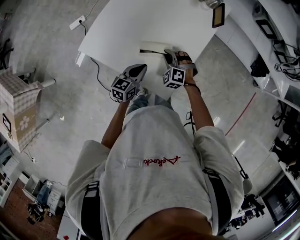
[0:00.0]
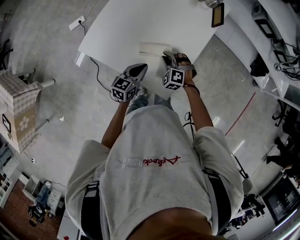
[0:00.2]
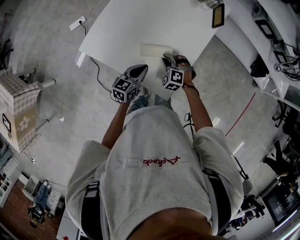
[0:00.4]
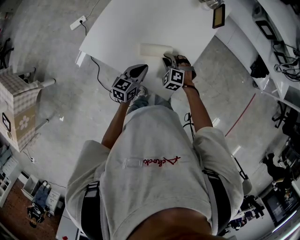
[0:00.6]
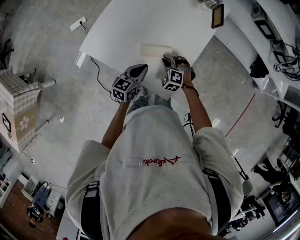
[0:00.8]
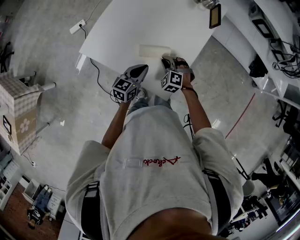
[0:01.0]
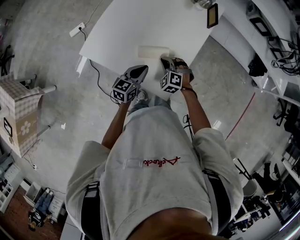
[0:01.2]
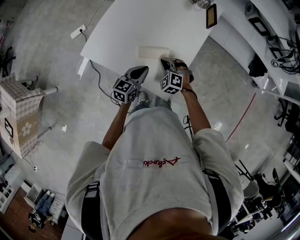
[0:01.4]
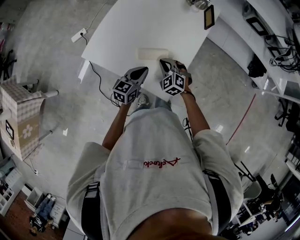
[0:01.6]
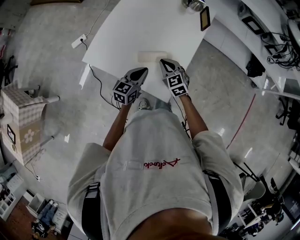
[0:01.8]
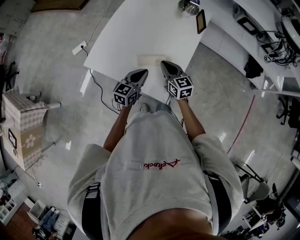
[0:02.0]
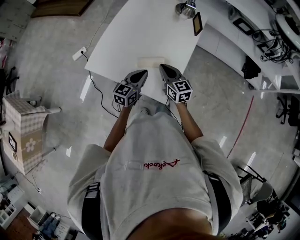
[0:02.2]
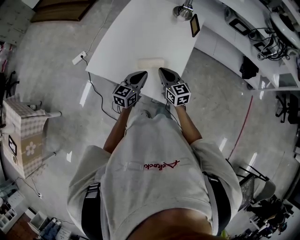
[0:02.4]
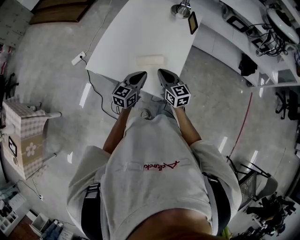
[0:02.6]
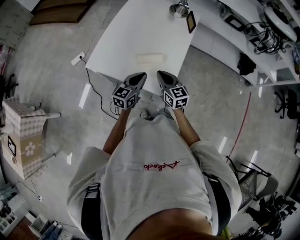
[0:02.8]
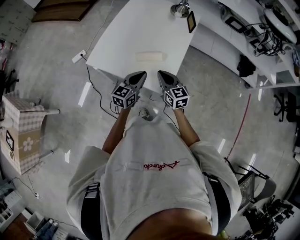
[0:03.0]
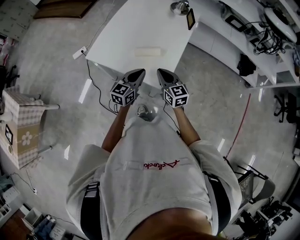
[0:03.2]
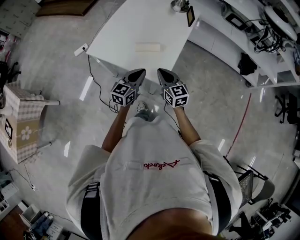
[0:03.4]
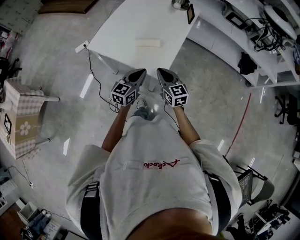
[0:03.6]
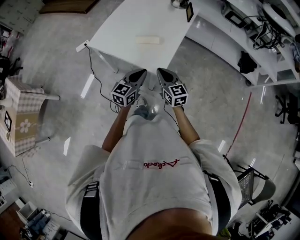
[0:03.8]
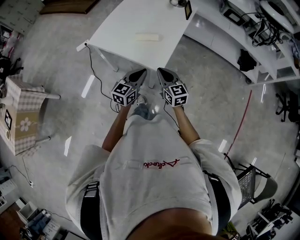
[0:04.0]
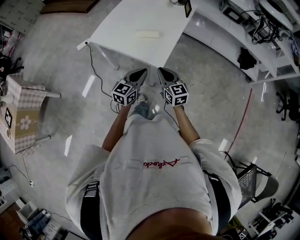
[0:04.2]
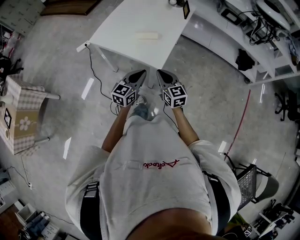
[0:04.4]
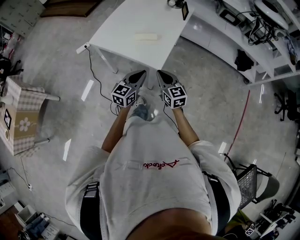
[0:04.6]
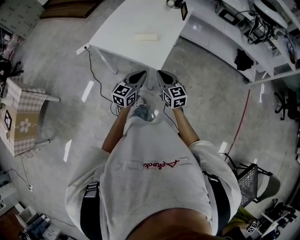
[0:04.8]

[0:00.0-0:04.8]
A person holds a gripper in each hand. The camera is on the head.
0:00.0 to 0:01.6: The right gripper turns by approximately 20 degrees.
0:01.6 to 0:03.2: The right gripper shifts some 15 cm upward and backward, and rotates around the line of its fingers by approximately 40 degrees, clockwise from behind. The left gripper is displaced upward and backward by about 10 cm.
0:03.2 to 0:04.8: Both grippers move backward, about 15 cm.

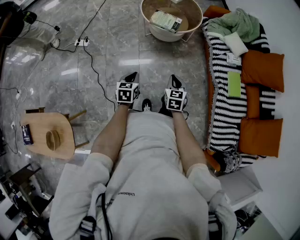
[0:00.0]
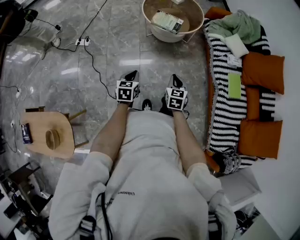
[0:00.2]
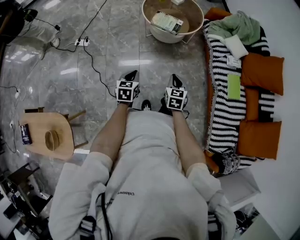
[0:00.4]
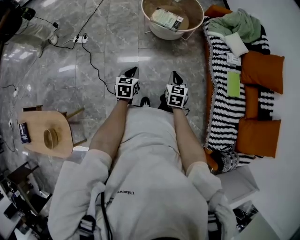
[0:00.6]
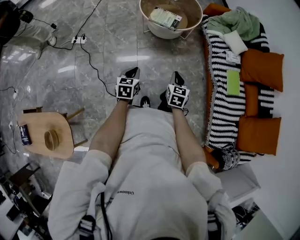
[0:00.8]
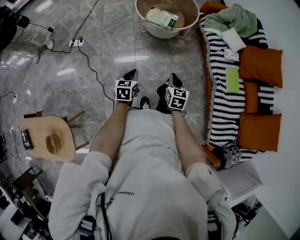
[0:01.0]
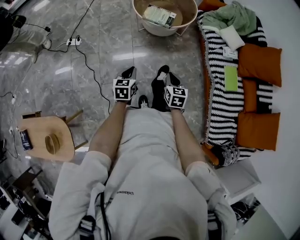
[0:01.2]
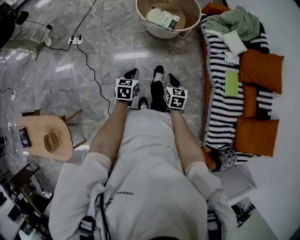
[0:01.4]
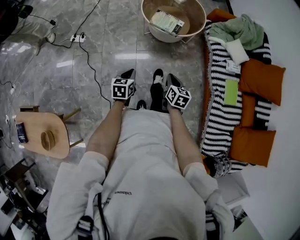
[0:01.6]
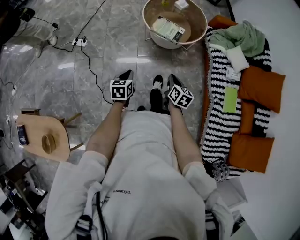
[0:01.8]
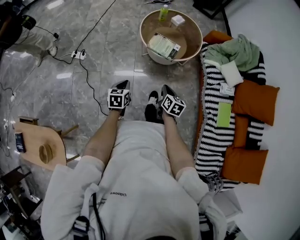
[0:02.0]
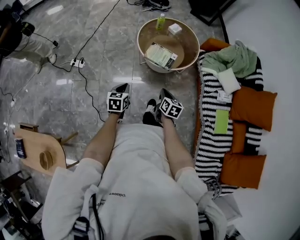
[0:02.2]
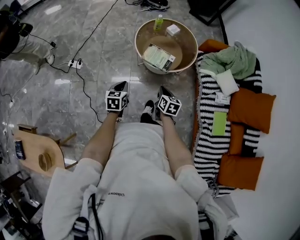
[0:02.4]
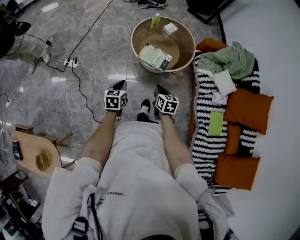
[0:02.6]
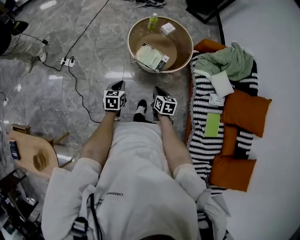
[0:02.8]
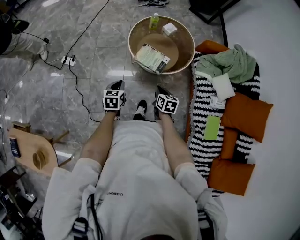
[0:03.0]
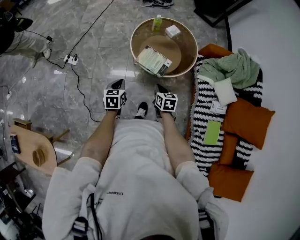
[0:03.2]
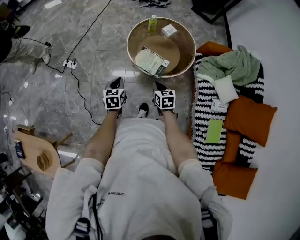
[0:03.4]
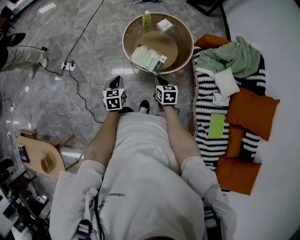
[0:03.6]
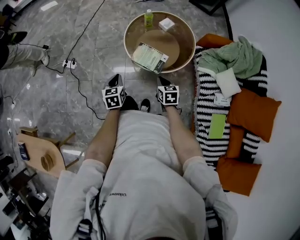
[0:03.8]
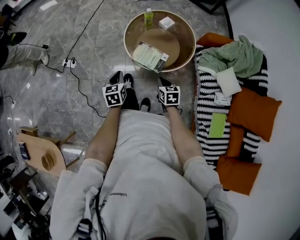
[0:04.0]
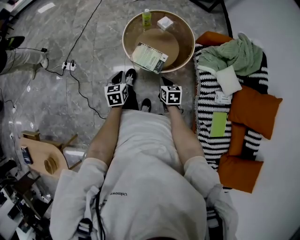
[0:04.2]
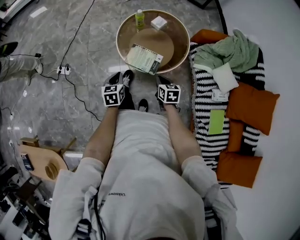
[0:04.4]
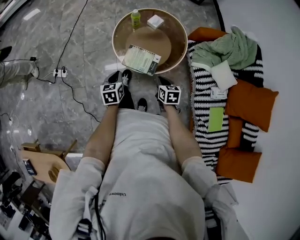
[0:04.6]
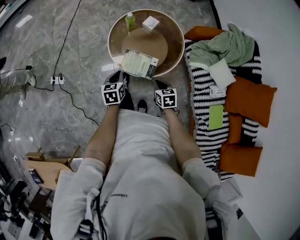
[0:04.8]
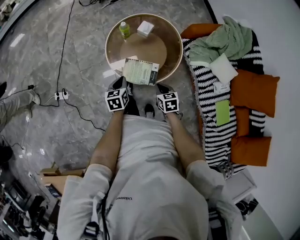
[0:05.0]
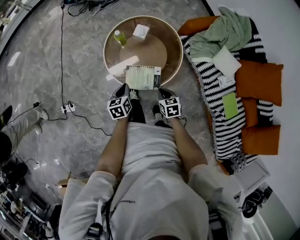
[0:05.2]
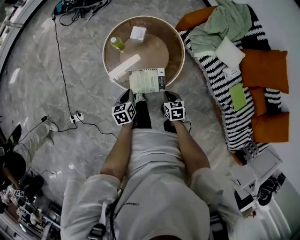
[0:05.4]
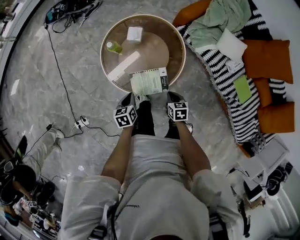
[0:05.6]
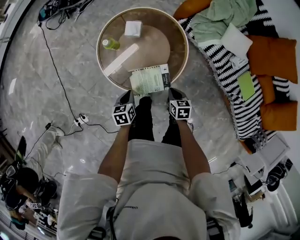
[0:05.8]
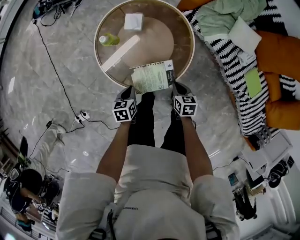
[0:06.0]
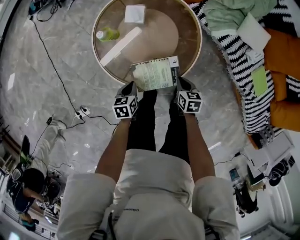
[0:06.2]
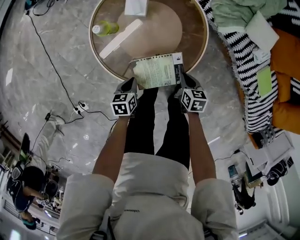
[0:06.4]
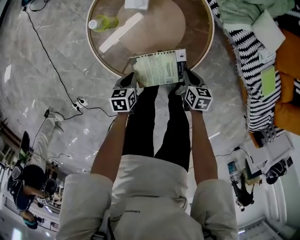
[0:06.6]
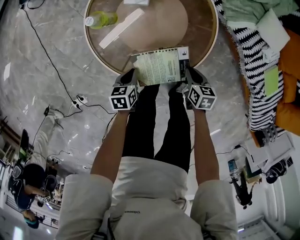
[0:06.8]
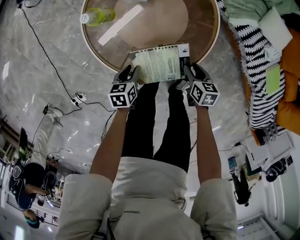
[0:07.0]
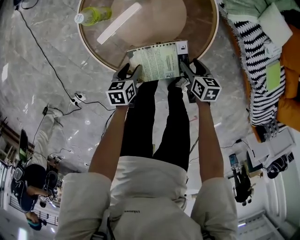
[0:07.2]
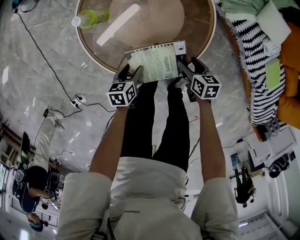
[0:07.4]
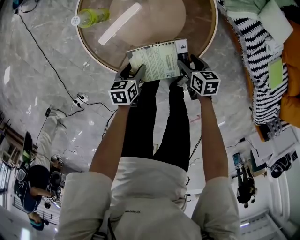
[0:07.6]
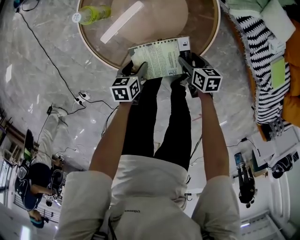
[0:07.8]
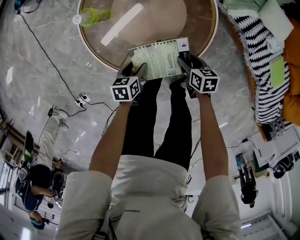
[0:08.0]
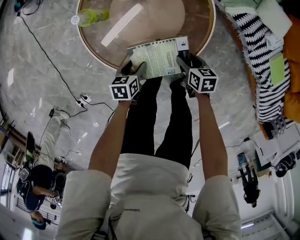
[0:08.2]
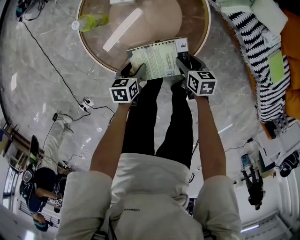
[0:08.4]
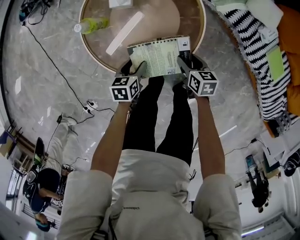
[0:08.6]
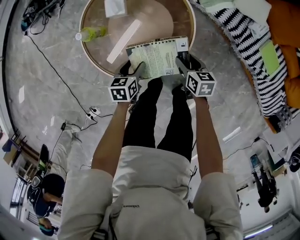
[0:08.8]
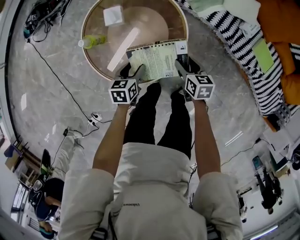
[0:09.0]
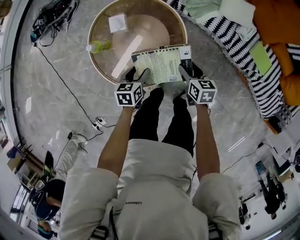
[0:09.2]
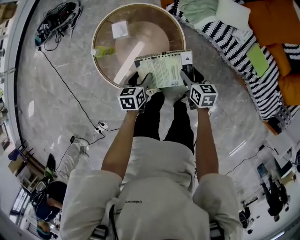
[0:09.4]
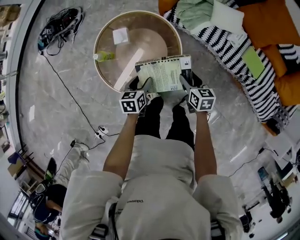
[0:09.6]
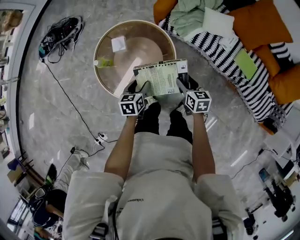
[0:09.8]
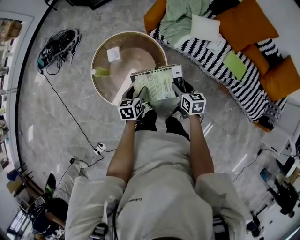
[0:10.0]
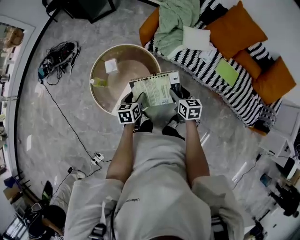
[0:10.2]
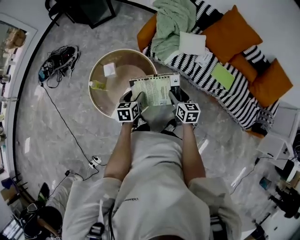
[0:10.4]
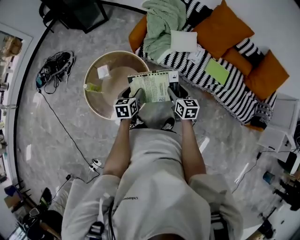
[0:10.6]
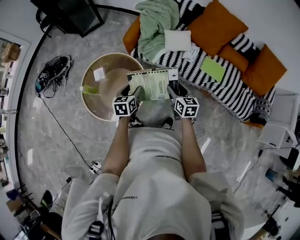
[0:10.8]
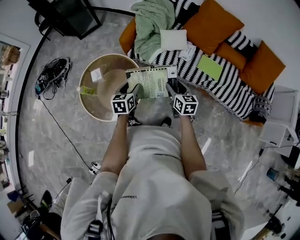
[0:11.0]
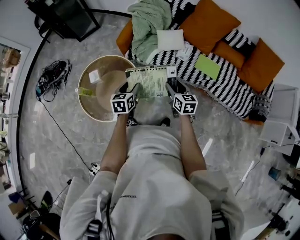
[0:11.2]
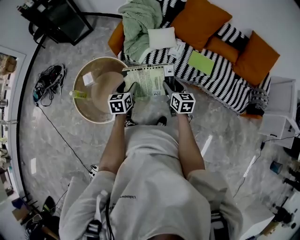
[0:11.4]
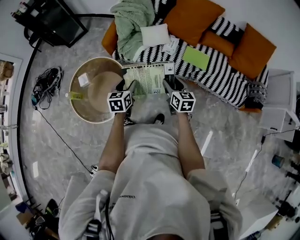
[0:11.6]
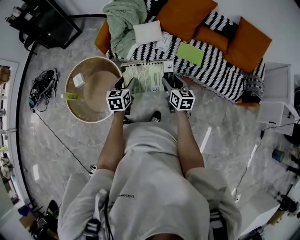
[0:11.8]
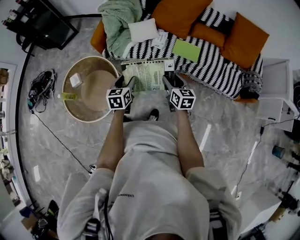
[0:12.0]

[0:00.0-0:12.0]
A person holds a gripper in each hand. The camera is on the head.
0:00.0 to 0:01.6: The two grippers go approximately 10 cm forward. The right gripper changes its angle by approximately 20 degrees.
0:01.6 to 0:03.0: Both grippers travel together forward, about 25 cm.
0:03.0 to 0:04.4: Both grippers move forward and to the right, approximately 10 cm.
0:04.4 to 0:06.0: The left gripper shifts by approximately 30 cm, and swivels approximately 40 degrees. Meanwhile the right gripper travels downward by approximately 15 cm, and turns by about 40 degrees.
0:06.0 to 0:07.6: Both grippers move downward, about 15 cm. The right gripper opens up; the left gripper opens up.
0:07.6 to 0:09.0: The left gripper heads upward, forward and to the right, covering some 15 cm; the right gripper goes about 15 cm upward.
0:09.0 to 0:10.4: Both grippers move upward and to the right, roughly 25 cm.
0:10.4 to 0:12.0: The grippers both shift to the right by about 25 cm.

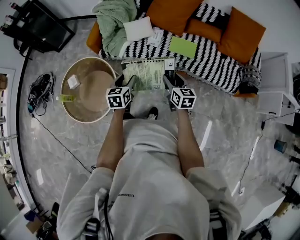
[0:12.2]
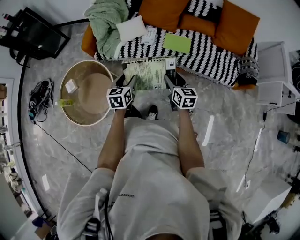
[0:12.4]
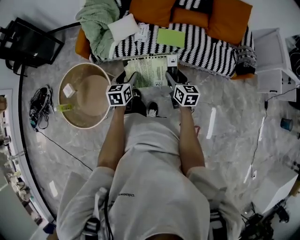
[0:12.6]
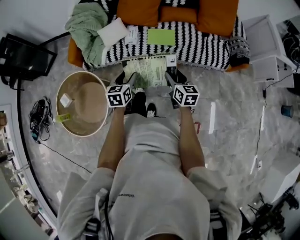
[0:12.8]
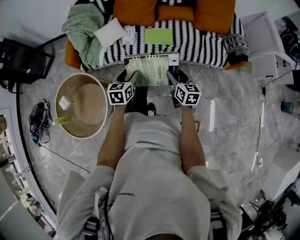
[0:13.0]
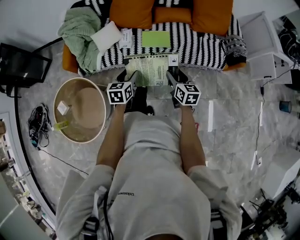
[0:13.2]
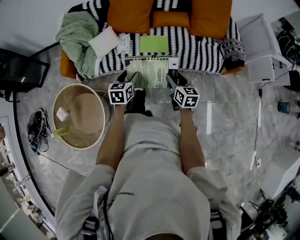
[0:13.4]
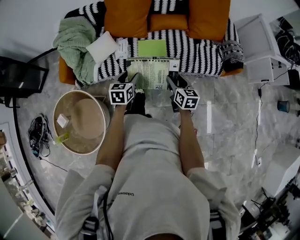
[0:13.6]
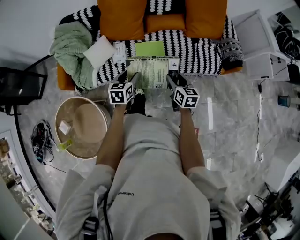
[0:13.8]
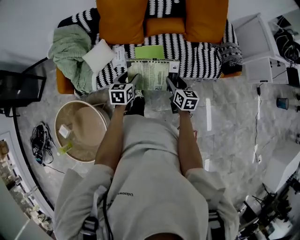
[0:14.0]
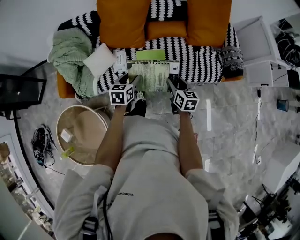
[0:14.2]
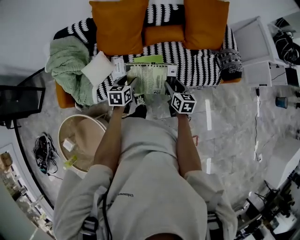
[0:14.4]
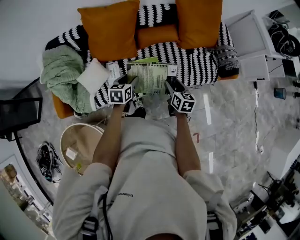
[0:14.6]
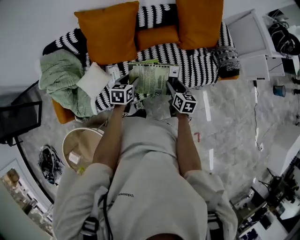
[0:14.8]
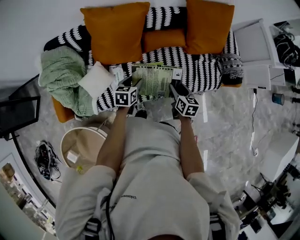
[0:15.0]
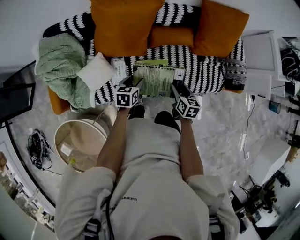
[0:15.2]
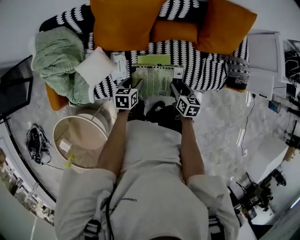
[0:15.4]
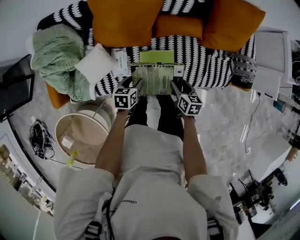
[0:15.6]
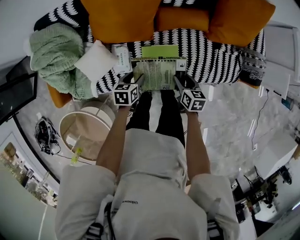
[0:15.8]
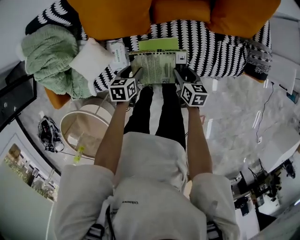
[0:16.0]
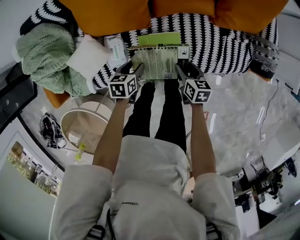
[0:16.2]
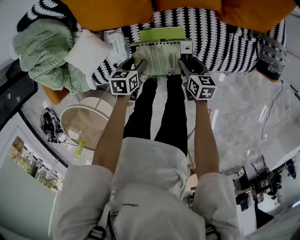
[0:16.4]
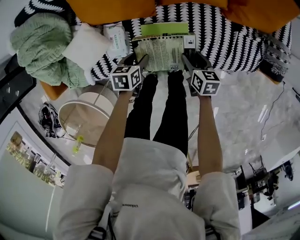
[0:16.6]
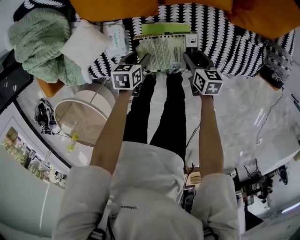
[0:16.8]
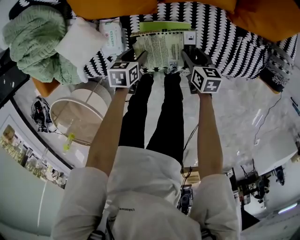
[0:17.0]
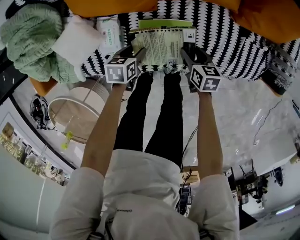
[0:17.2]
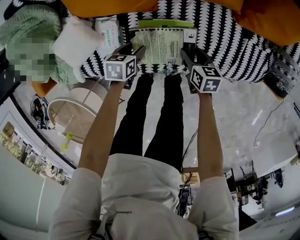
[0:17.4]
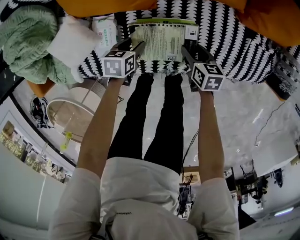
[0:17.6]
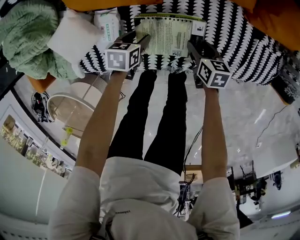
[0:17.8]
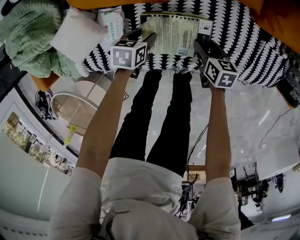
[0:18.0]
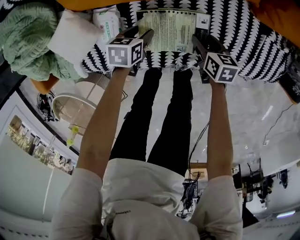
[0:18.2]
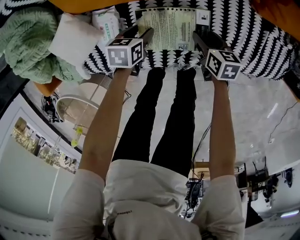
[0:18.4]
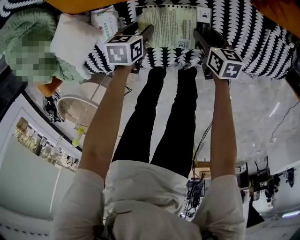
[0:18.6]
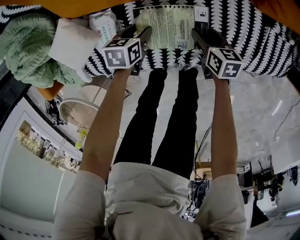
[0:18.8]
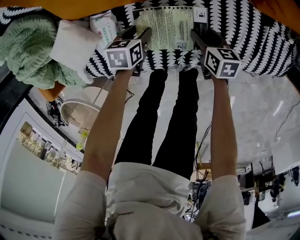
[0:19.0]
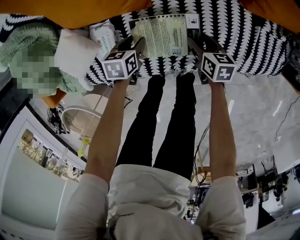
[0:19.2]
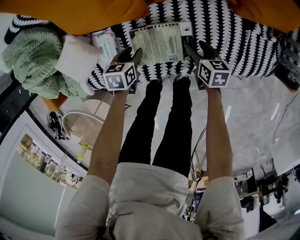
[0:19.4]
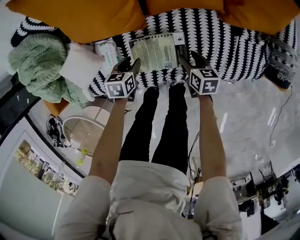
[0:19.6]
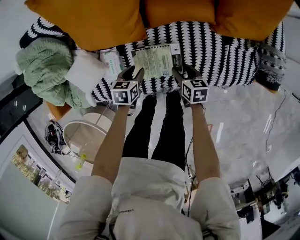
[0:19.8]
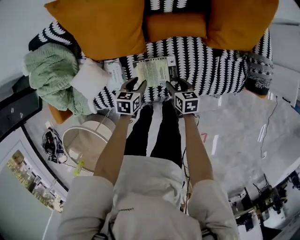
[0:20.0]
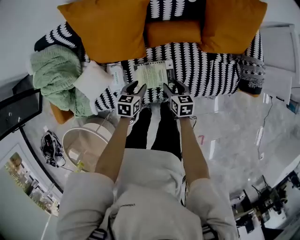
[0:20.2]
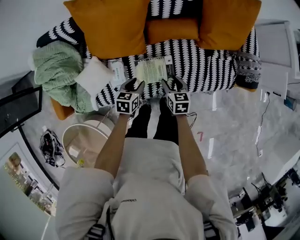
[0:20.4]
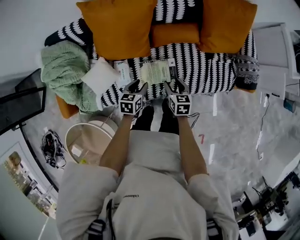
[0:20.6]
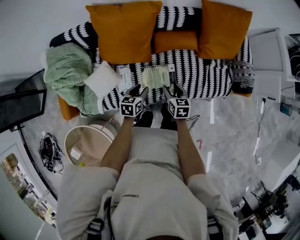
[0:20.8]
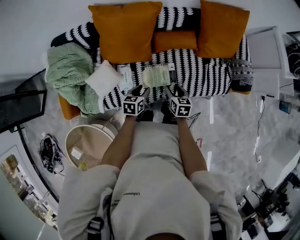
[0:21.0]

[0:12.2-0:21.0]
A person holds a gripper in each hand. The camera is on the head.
0:12.2 to 0:13.6: The grippers both shift to the right and forward by some 20 cm. The right gripper turns by roughly 20 degrees. Meanwhile the left gripper swivels some 20 degrees.
0:13.6 to 0:15.2: The grippers both shift forward by roughly 25 cm.
0:15.2 to 0:16.6: The grippers both shift downward by some 20 cm.
0:16.6 to 0:18.0: Both grippers travel together downward, approximately 10 cm.
0:18.0 to 0:19.6: Both grippers travel together upward, approximately 5 cm.
0:19.6 to 0:21.0: The left gripper travels upward by approximately 20 cm. The right gripper goes about 25 cm upward and backward.
